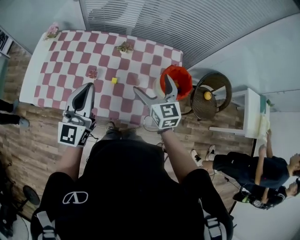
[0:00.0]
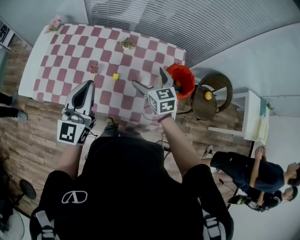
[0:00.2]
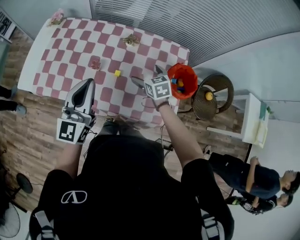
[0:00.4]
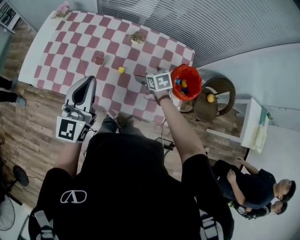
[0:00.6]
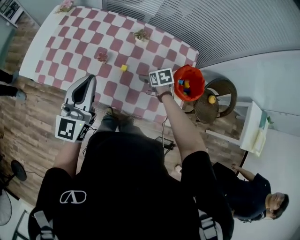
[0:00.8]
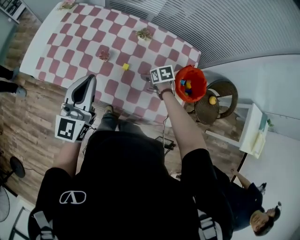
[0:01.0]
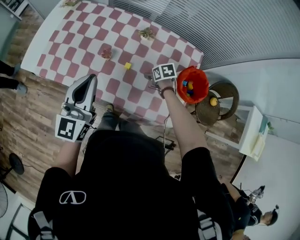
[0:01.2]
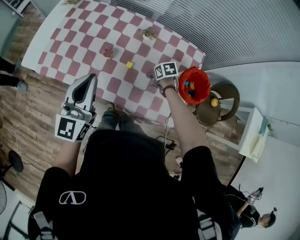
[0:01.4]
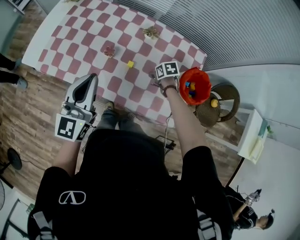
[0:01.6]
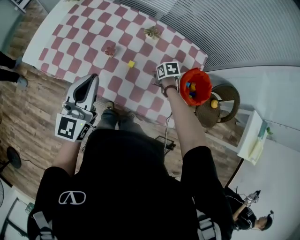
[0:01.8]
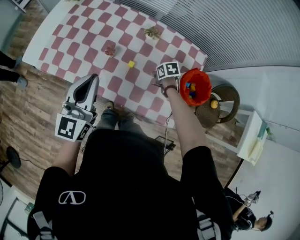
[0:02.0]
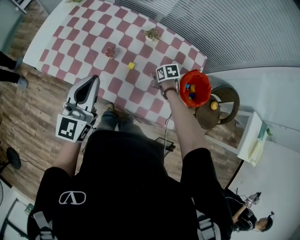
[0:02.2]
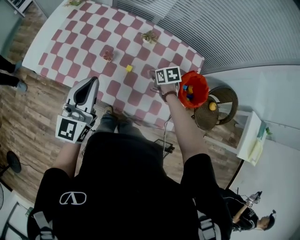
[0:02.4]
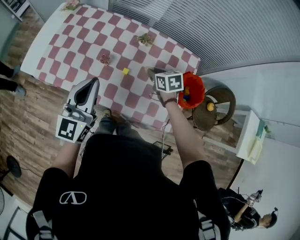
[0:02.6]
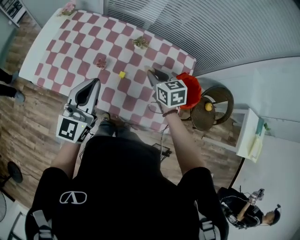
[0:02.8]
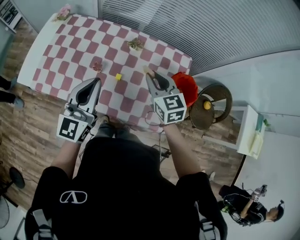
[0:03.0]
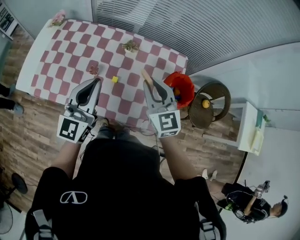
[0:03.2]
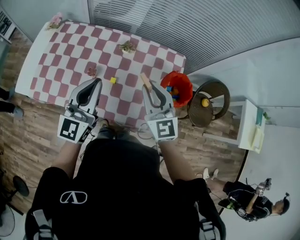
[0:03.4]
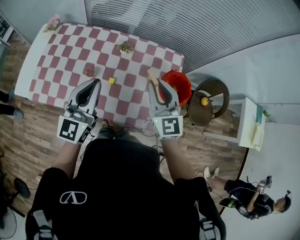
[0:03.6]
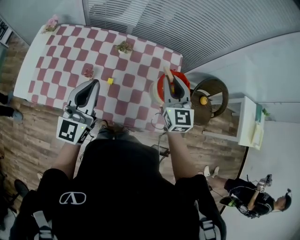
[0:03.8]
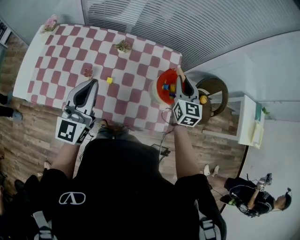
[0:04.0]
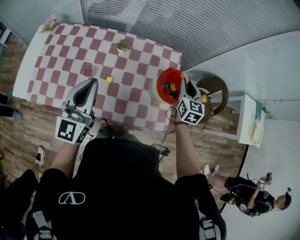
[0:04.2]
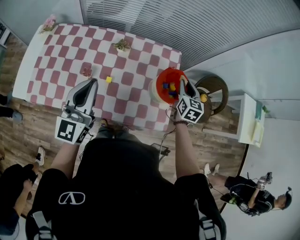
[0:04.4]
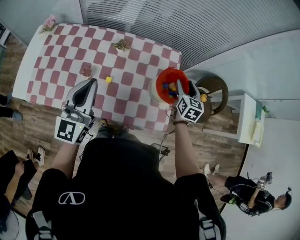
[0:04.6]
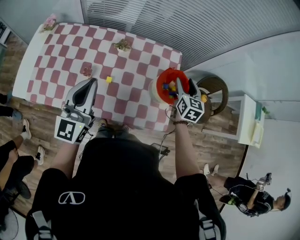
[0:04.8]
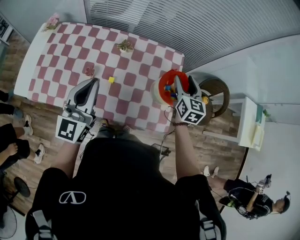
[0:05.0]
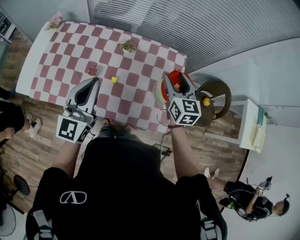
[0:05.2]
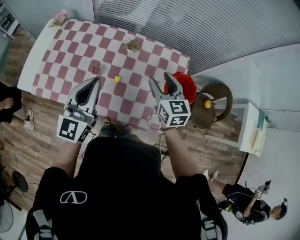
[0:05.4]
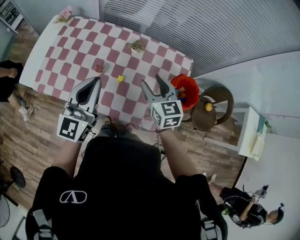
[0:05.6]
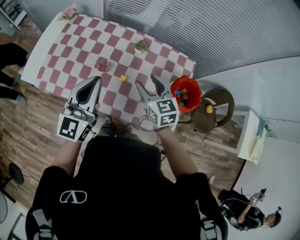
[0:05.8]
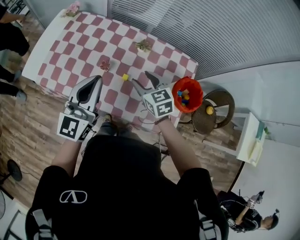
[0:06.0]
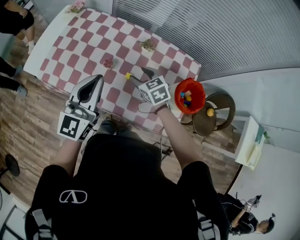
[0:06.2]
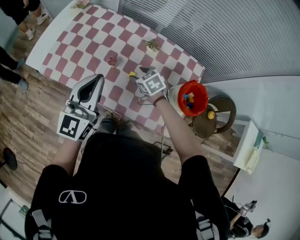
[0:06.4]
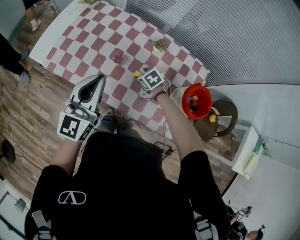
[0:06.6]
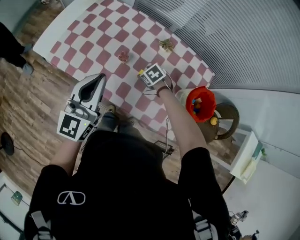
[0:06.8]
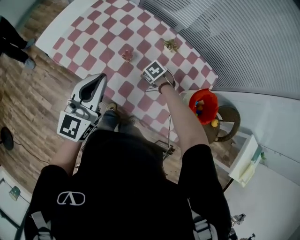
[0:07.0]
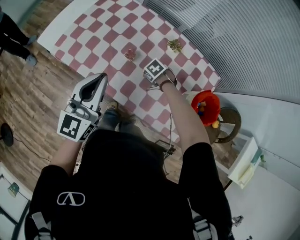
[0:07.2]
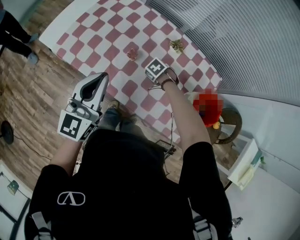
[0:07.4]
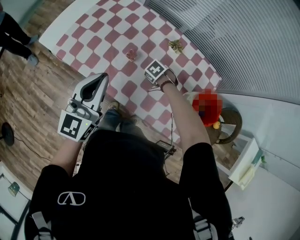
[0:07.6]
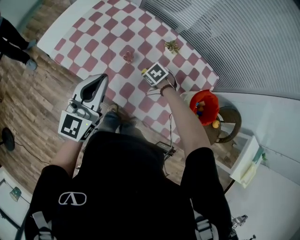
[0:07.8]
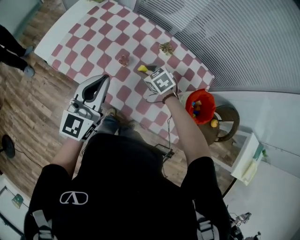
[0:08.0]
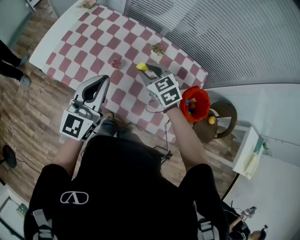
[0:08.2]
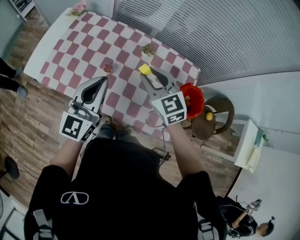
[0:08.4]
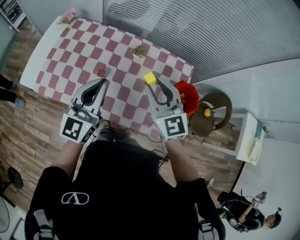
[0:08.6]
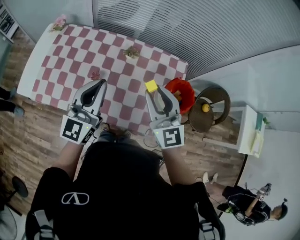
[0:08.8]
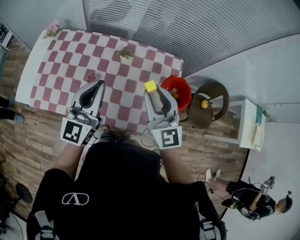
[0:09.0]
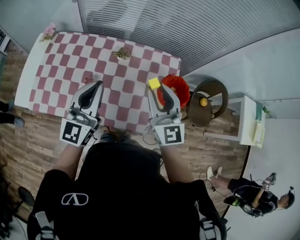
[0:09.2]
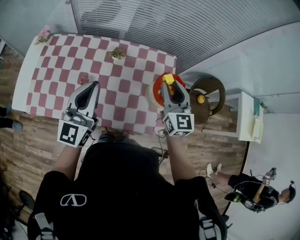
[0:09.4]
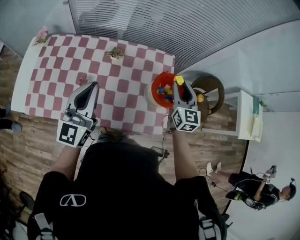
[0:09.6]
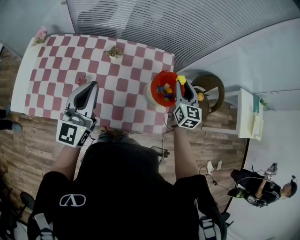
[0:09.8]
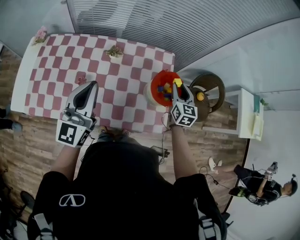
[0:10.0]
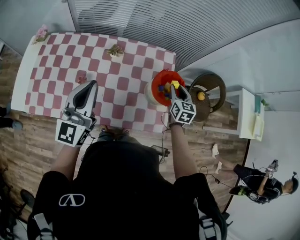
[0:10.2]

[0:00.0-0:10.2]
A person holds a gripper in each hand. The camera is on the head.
0:00.0 to 0:01.4: The left gripper ends up roughly 5 cm from where it was. Meanwhile the right gripper is displaced downward by roughly 30 cm, points its fingers about 50 degrees further downward, and closes up.
0:01.4 to 0:03.0: The right gripper shifts about 30 cm upward, angles its fingers upward, by about 40 degrees, and closes. Meanwhile the left gripper moves to the right, some 5 cm.
0:03.0 to 0:04.4: The right gripper goes roughly 25 cm to the right, and turns by about 40 degrees.
0:04.4 to 0:05.8: The left gripper heads to the left, covering roughly 5 cm, while the right gripper goes roughly 30 cm to the left, and swivels some 40 degrees.
0:05.8 to 0:07.2: The left gripper moves roughly 10 cm; the right gripper is displaced downward by approximately 25 cm, and tips its fingers downward by about 50 degrees.
0:07.2 to 0:08.8: The right gripper shifts about 40 cm upward, and tilts its fingers approximately 80 degrees upward, while the left gripper ends up approximately 15 cm from where it was.
0:08.8 to 0:10.2: The right gripper heads to the right and downward, covering approximately 30 cm, and changes its angle by roughly 50 degrees.

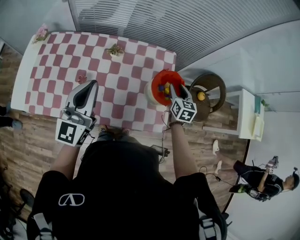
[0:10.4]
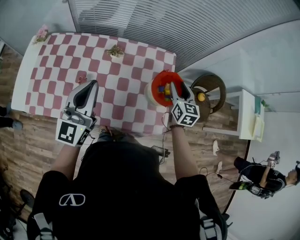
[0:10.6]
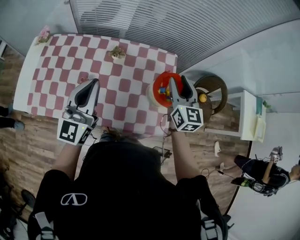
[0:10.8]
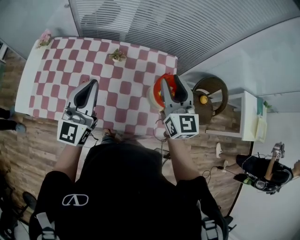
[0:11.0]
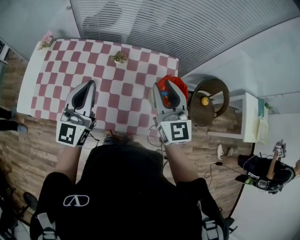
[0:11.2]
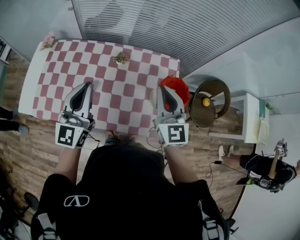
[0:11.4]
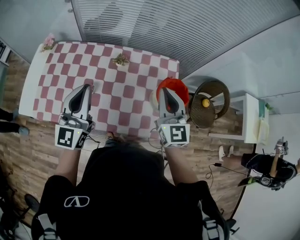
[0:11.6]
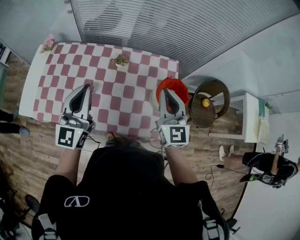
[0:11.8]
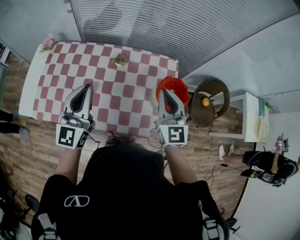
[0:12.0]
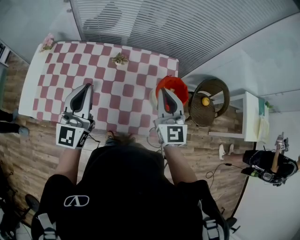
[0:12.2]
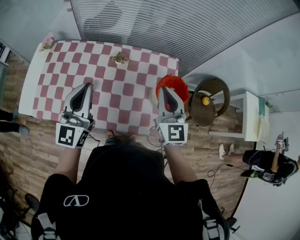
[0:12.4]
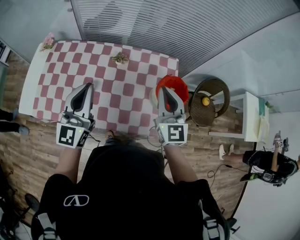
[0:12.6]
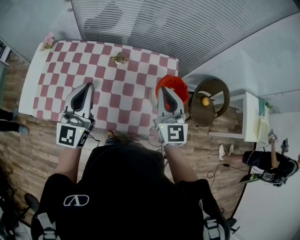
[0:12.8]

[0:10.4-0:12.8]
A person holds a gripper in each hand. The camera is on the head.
0:10.4 to 0:11.6: The right gripper travels upward and to the left by roughly 25 cm, and swivels some 30 degrees. The left gripper changes place by some 5 cm.
0:11.6 to 0:12.8: There are only small adjustments of the grippers.

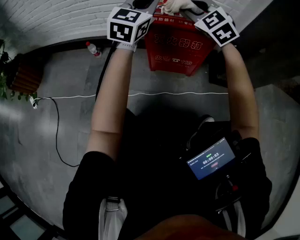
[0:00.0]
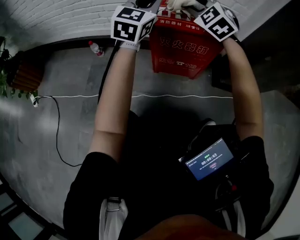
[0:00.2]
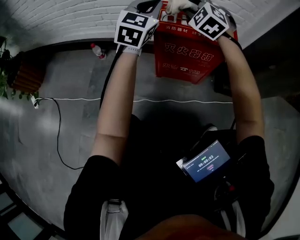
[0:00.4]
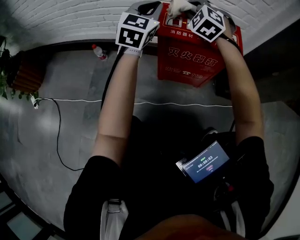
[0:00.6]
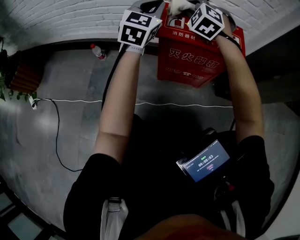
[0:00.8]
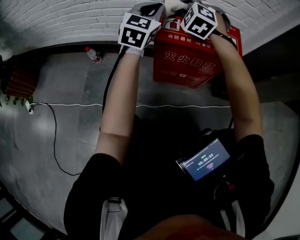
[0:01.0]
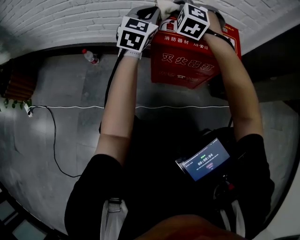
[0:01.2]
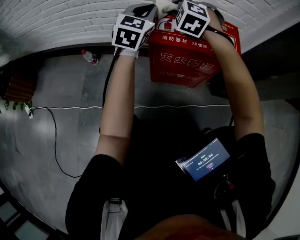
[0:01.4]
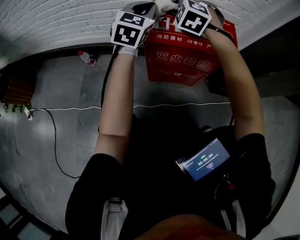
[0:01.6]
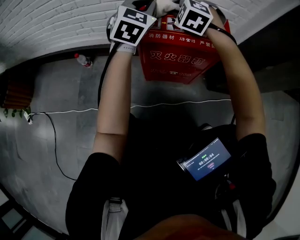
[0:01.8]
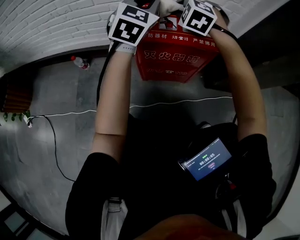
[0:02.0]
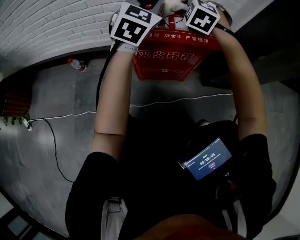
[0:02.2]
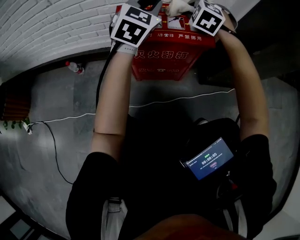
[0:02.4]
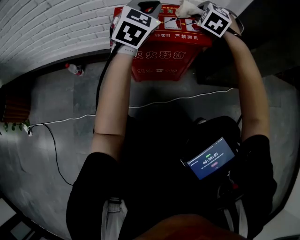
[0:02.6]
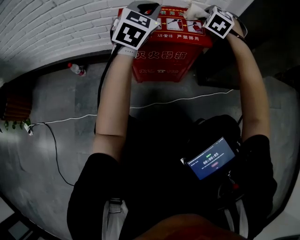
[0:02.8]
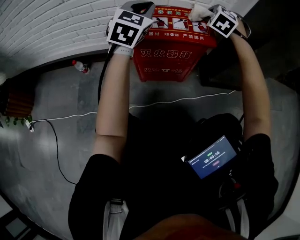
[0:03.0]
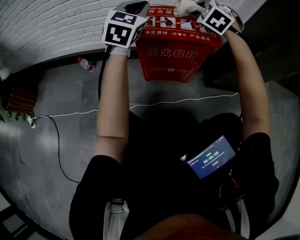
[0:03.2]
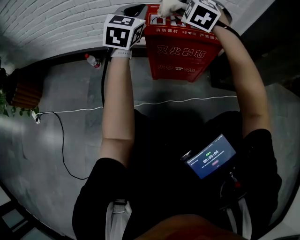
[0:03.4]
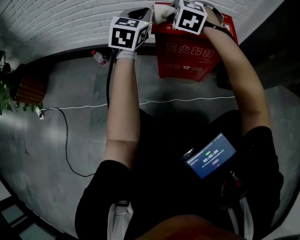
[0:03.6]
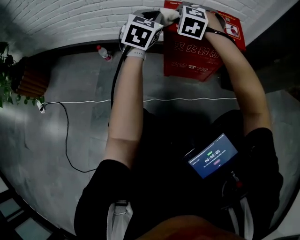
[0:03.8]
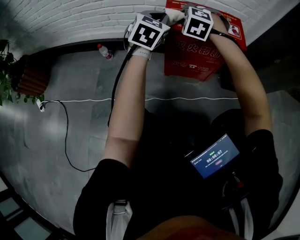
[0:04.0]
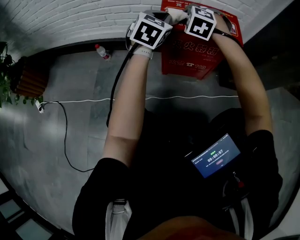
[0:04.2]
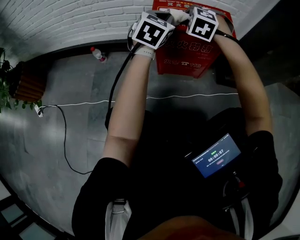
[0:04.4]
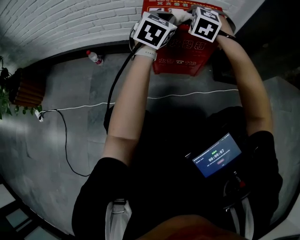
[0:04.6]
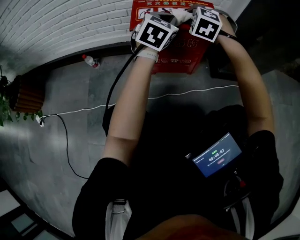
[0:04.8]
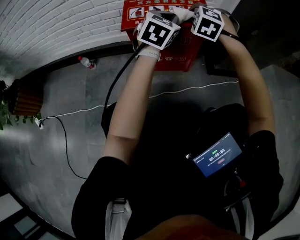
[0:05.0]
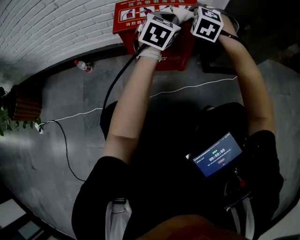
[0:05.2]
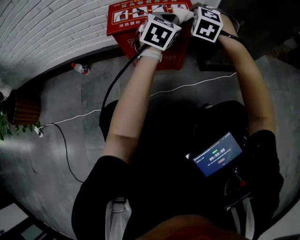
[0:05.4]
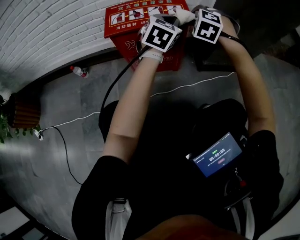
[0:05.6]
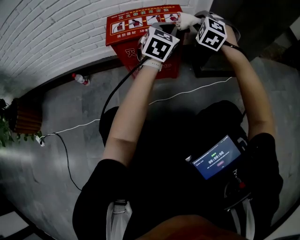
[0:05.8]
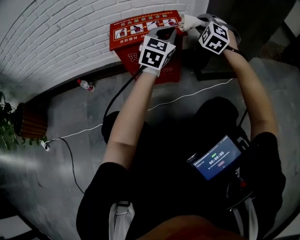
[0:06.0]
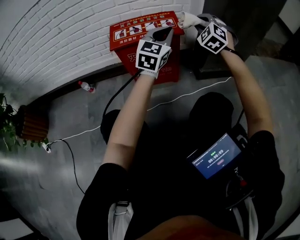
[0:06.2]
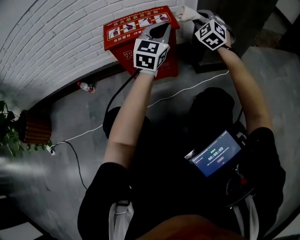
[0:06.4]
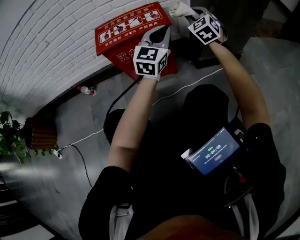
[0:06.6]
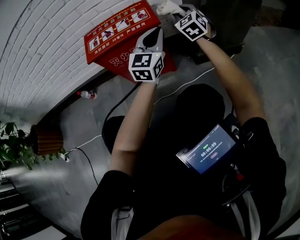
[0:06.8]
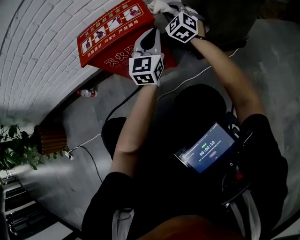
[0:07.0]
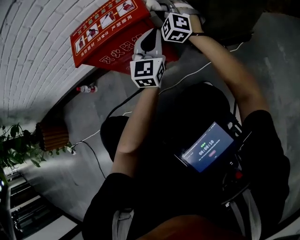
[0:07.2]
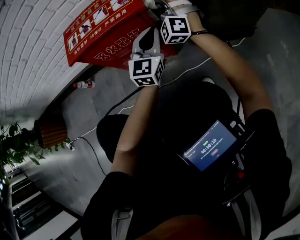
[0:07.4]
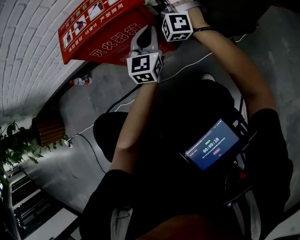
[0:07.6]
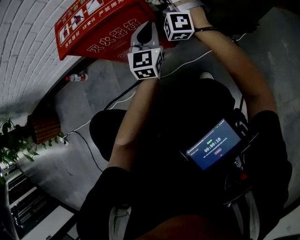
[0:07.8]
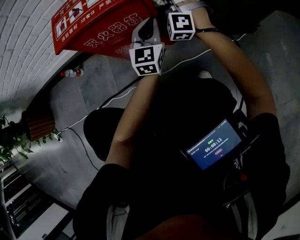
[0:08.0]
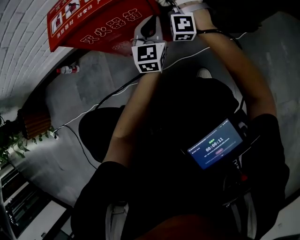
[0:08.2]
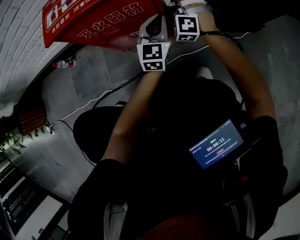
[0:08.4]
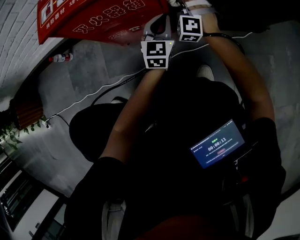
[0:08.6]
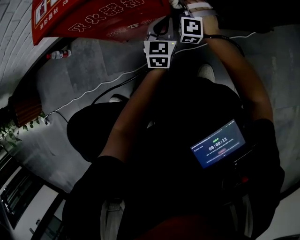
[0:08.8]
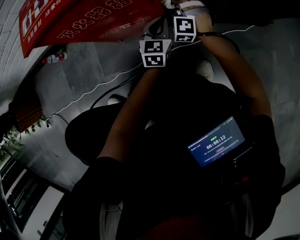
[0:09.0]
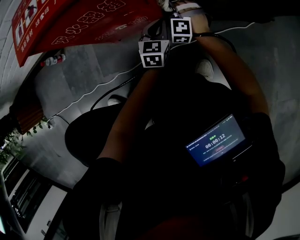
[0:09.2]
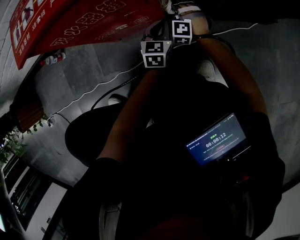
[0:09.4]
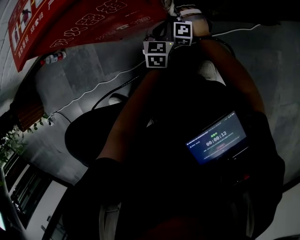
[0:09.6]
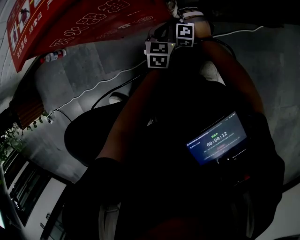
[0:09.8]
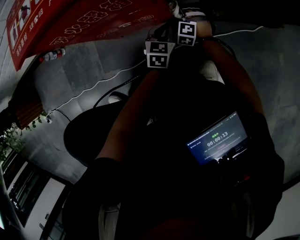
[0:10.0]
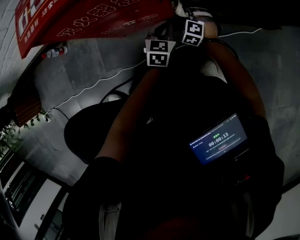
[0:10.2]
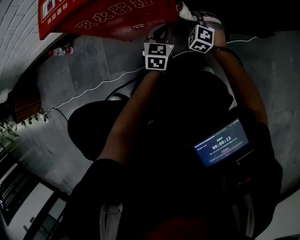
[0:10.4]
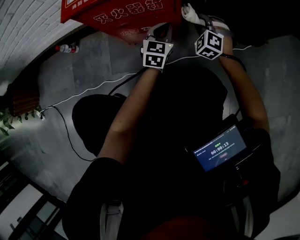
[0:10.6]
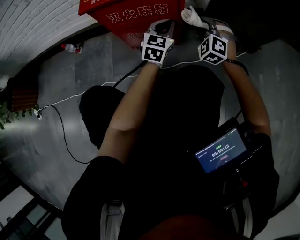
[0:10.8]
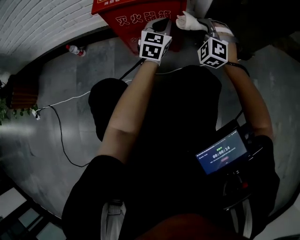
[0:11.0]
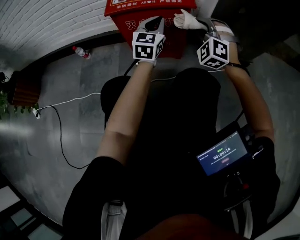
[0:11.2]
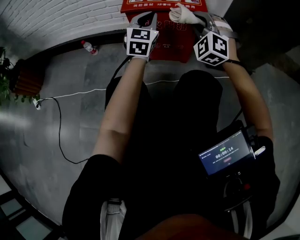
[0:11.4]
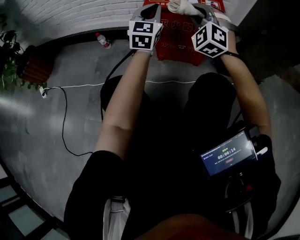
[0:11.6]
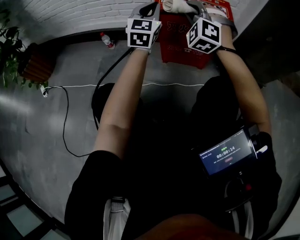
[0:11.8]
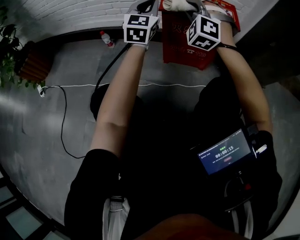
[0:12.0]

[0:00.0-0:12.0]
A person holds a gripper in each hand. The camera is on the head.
0:00.0 to 0:01.6: The two grippers go about 15 cm forward and downward. The right gripper rotates approximately 30 degrees.
0:01.6 to 0:03.0: The right gripper travels to the right by about 25 cm, and rotates some 20 degrees, while the left gripper travels to the right and upward by about 10 cm.
0:03.0 to 0:04.4: The right gripper shifts some 20 cm to the left and backward. The left gripper is displaced downward and backward by approximately 10 cm, and moves some 10 cm to the left and comes back.
0:04.4 to 0:06.0: The two grippers go approximately 25 cm to the right. The right gripper swivels some 20 degrees.
0:06.0 to 0:07.6: The right gripper travels downward and forward by some 20 cm. The left gripper travels downward by some 20 cm.
0:07.6 to 0:09.0: Both grippers travel together downward, approximately 25 cm. The right gripper swivels roughly 30 degrees.
0:09.0 to 0:10.4: The right gripper reaches some 15 cm downward, then returns; the left gripper travels downward and back again, some 10 cm each way.
0:10.4 to 0:12.0: The left gripper moves approximately 35 cm, and rotates some 40 degrees. The right gripper is displaced upward by roughly 25 cm, and rotates approximately 40 degrees.
